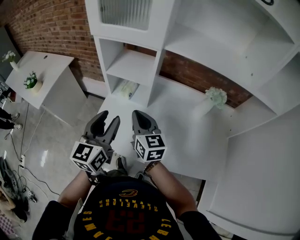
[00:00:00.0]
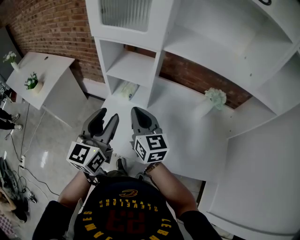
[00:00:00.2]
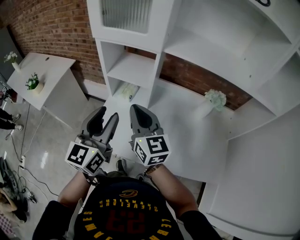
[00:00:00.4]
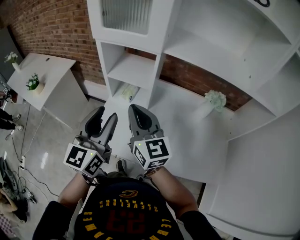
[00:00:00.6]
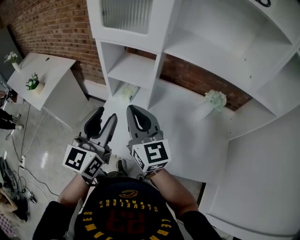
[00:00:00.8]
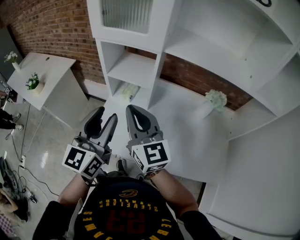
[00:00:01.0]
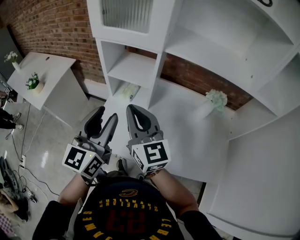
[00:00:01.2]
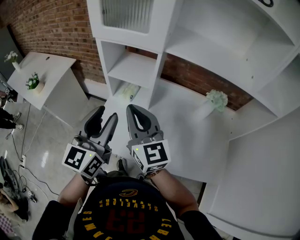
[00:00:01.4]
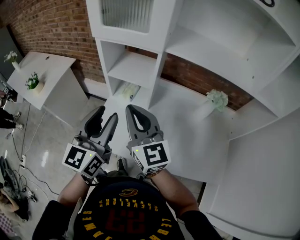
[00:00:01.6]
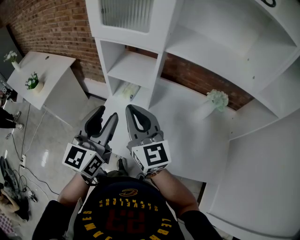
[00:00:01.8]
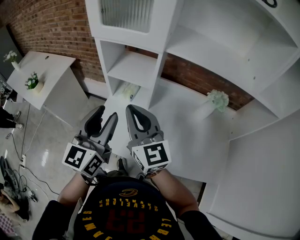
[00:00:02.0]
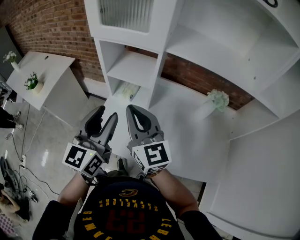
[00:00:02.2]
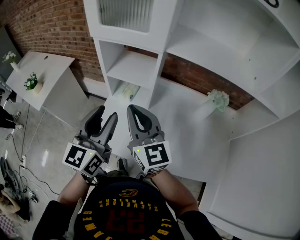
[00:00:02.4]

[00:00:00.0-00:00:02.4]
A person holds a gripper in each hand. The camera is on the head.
00:00:00.0 to 00:00:01.2: The right gripper is displaced upward by roughly 10 cm. The left gripper heads upward, covering approximately 5 cm.
00:00:01.2 to 00:00:02.4: The grippers move only a little.

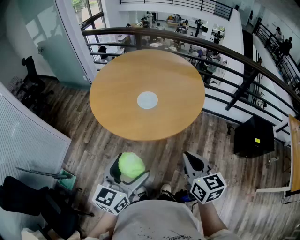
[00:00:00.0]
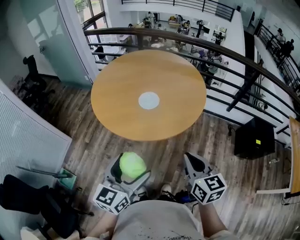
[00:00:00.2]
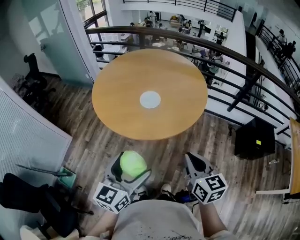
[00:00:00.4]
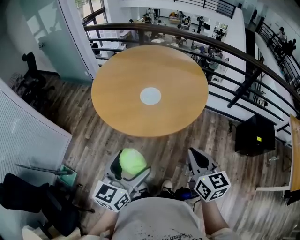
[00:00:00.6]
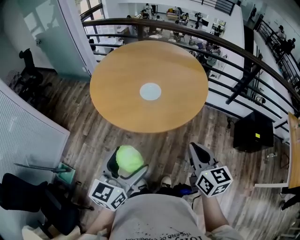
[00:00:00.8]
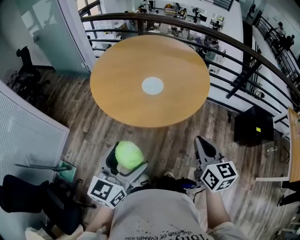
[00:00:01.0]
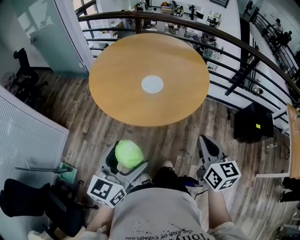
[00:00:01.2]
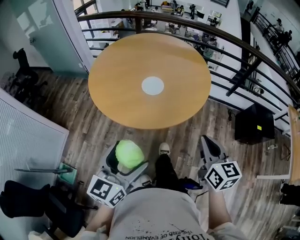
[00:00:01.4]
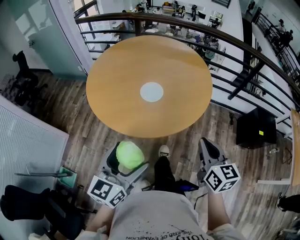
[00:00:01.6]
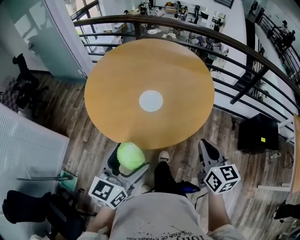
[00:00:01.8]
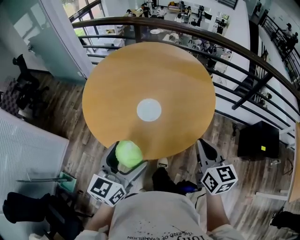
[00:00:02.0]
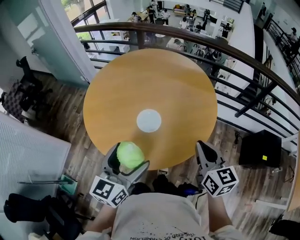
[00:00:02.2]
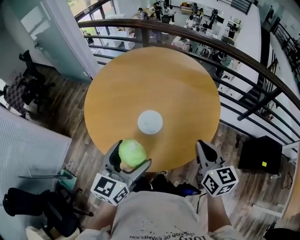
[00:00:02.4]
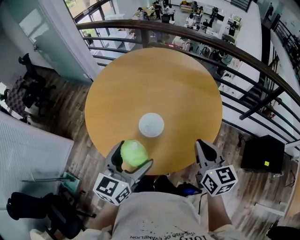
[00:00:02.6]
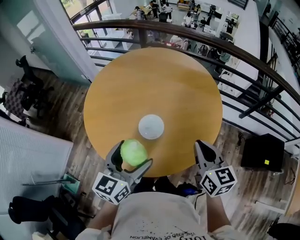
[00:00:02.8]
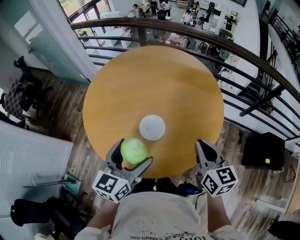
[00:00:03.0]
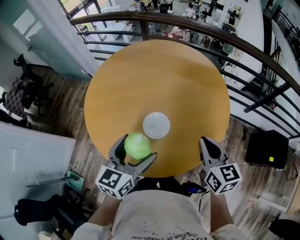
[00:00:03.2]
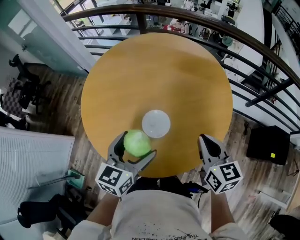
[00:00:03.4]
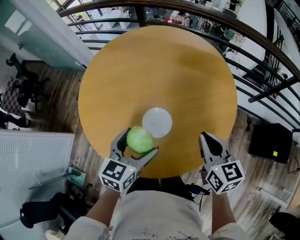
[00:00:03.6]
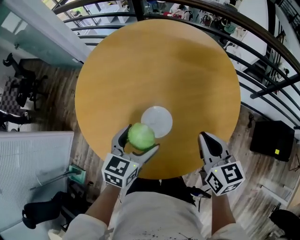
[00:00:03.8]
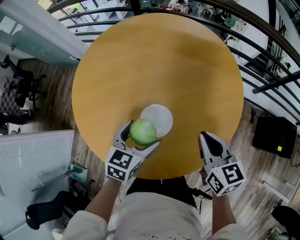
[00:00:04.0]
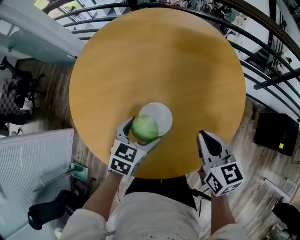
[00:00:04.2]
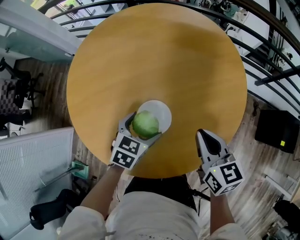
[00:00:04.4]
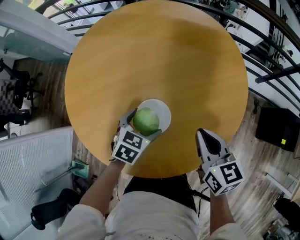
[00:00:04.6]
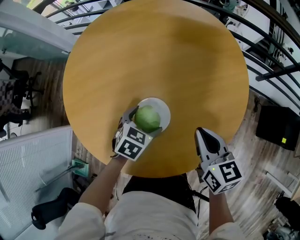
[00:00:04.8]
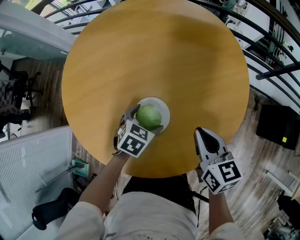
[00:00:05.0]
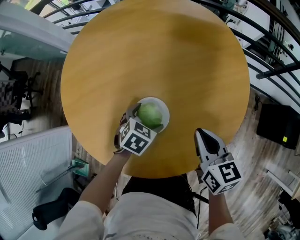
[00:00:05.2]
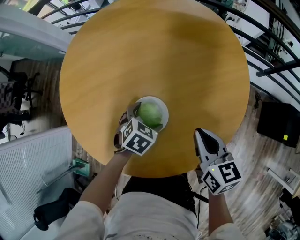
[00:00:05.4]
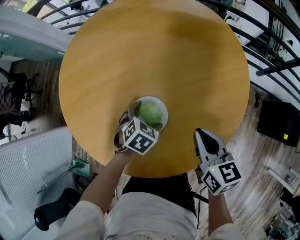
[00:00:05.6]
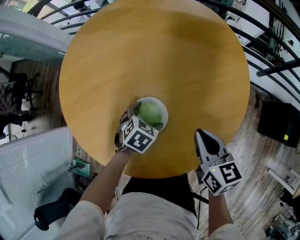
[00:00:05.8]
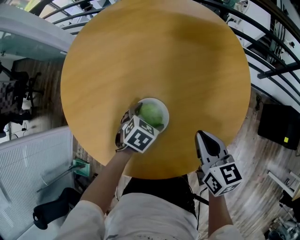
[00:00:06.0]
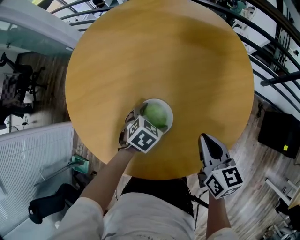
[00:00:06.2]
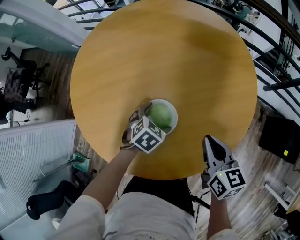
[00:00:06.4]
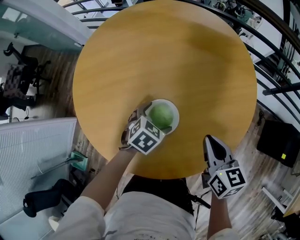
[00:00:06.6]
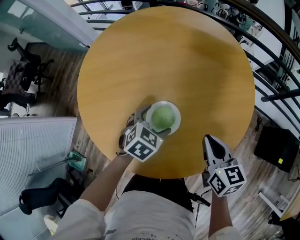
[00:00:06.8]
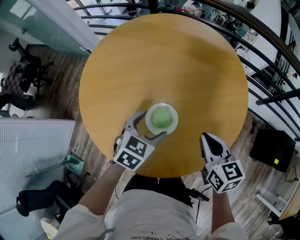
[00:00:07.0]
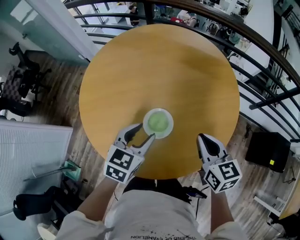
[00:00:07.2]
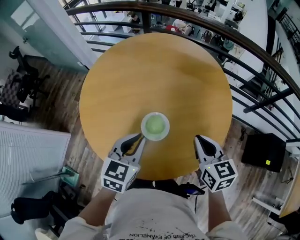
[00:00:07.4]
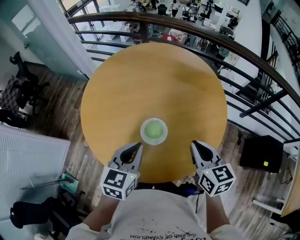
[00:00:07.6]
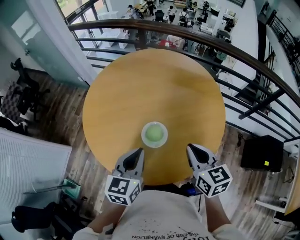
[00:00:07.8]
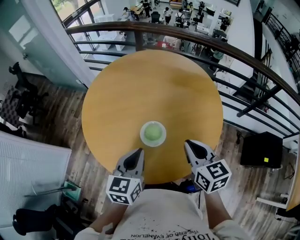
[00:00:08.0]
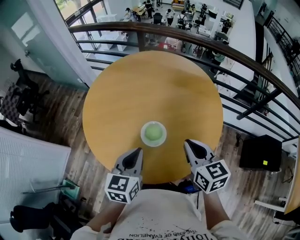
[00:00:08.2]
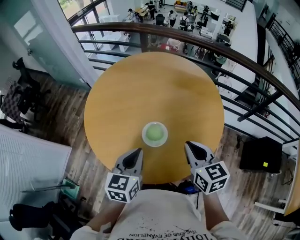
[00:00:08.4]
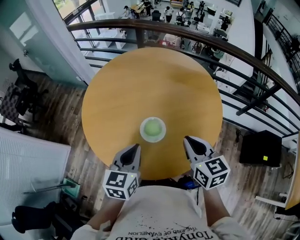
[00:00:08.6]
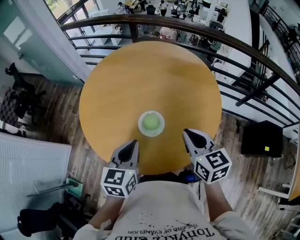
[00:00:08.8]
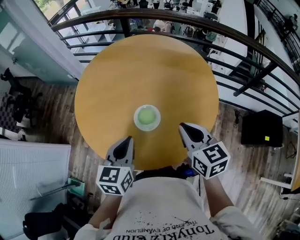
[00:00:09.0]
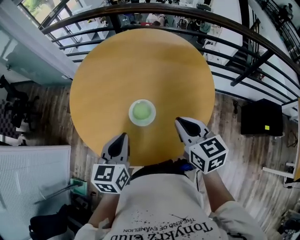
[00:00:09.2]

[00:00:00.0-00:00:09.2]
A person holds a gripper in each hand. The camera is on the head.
00:00:00.0 to 00:00:01.6: Both grippers move forward, approximately 5 cm.
00:00:01.6 to 00:00:03.0: Both grippers move forward, roughly 25 cm.
00:00:03.0 to 00:00:04.6: The right gripper shifts approximately 15 cm downward and forward. The left gripper travels downward and forward by roughly 30 cm, and tilts its fingers roughly 40 degrees downward.
00:00:04.6 to 00:00:06.2: The left gripper travels downward by roughly 5 cm.
00:00:06.2 to 00:00:07.6: The right gripper travels upward by some 15 cm. The left gripper is displaced upward and backward by about 30 cm, tilts its fingers some 40 degrees upward, and closes up.
00:00:07.6 to 00:00:09.2: There are only small adjustments of the grippers.

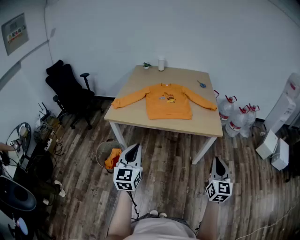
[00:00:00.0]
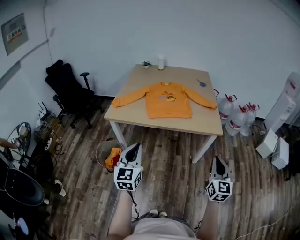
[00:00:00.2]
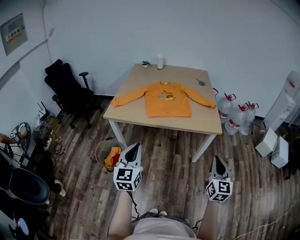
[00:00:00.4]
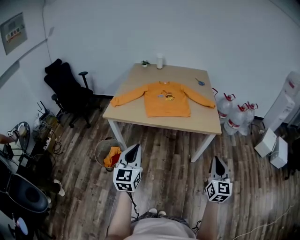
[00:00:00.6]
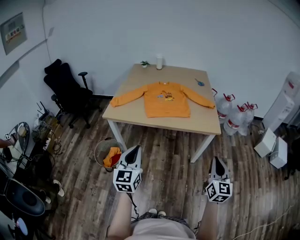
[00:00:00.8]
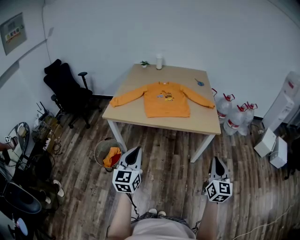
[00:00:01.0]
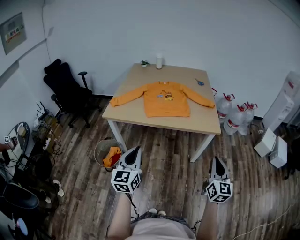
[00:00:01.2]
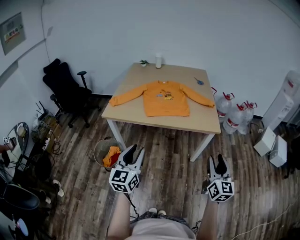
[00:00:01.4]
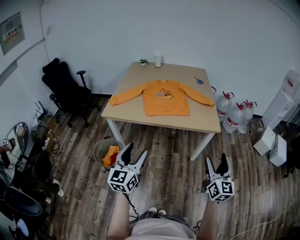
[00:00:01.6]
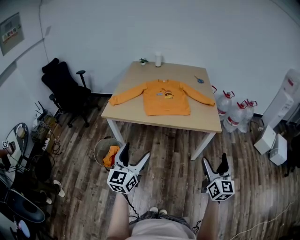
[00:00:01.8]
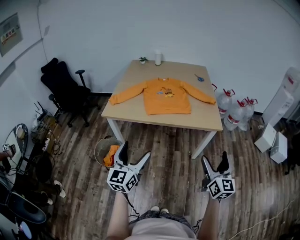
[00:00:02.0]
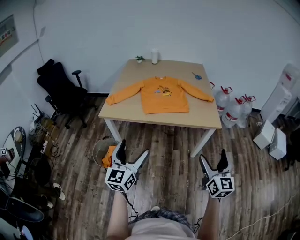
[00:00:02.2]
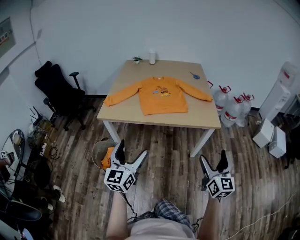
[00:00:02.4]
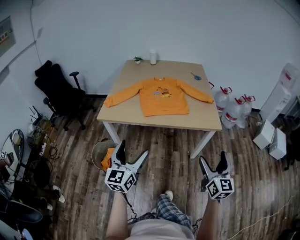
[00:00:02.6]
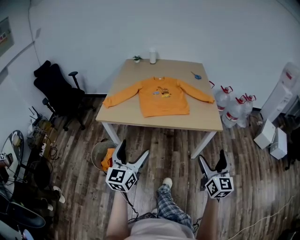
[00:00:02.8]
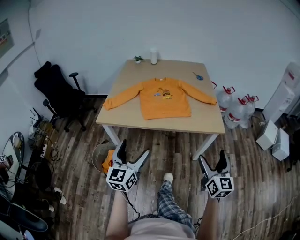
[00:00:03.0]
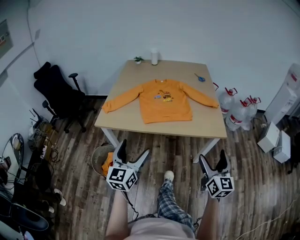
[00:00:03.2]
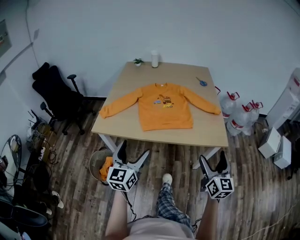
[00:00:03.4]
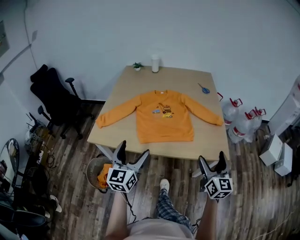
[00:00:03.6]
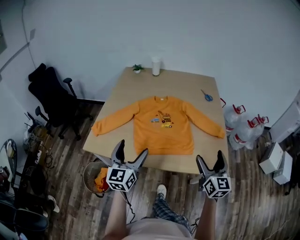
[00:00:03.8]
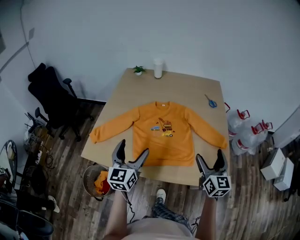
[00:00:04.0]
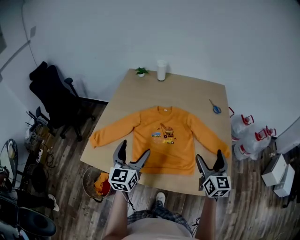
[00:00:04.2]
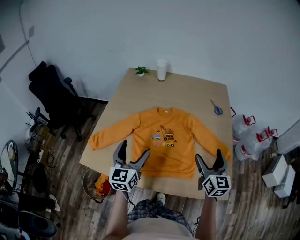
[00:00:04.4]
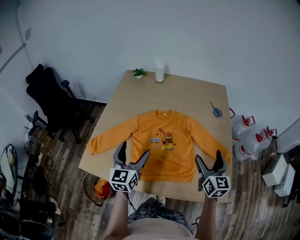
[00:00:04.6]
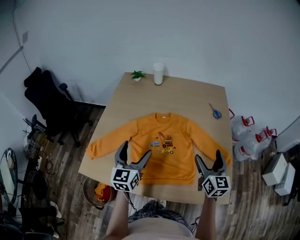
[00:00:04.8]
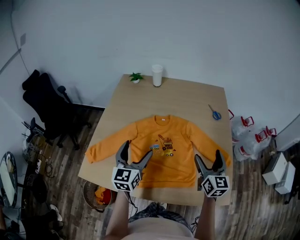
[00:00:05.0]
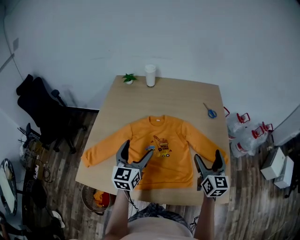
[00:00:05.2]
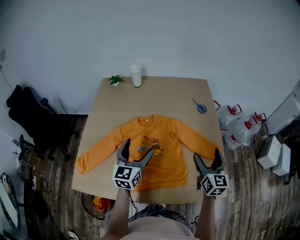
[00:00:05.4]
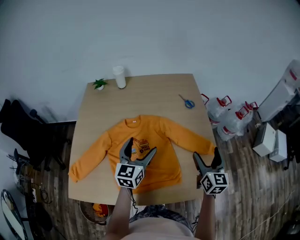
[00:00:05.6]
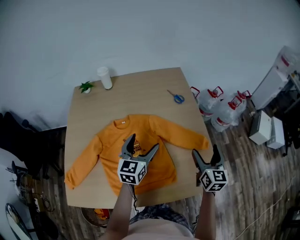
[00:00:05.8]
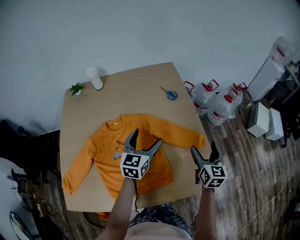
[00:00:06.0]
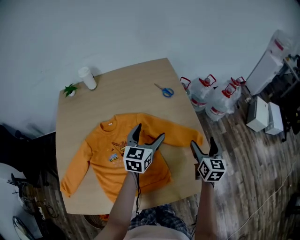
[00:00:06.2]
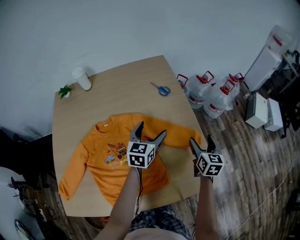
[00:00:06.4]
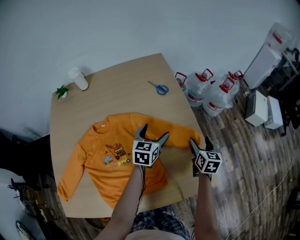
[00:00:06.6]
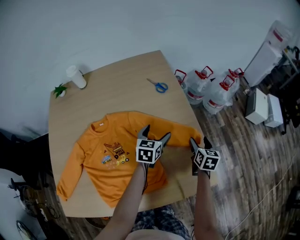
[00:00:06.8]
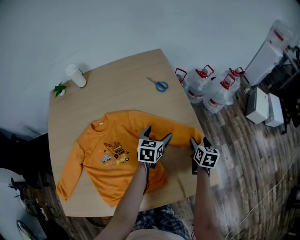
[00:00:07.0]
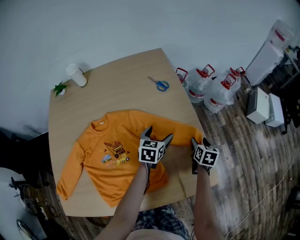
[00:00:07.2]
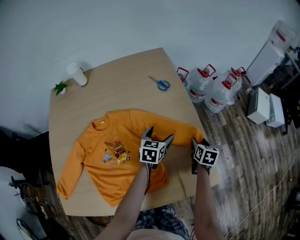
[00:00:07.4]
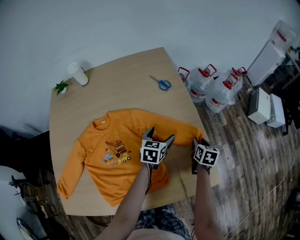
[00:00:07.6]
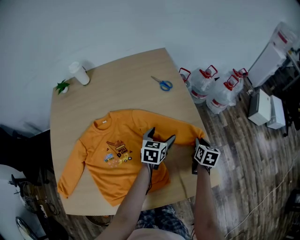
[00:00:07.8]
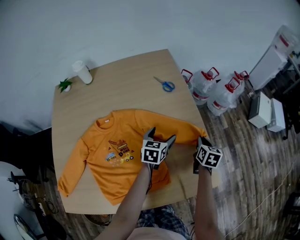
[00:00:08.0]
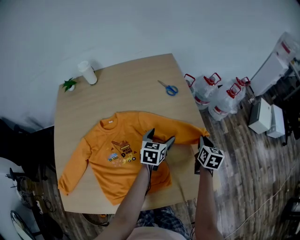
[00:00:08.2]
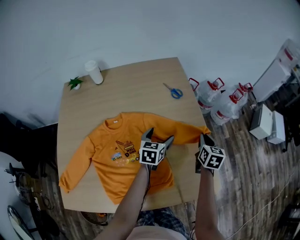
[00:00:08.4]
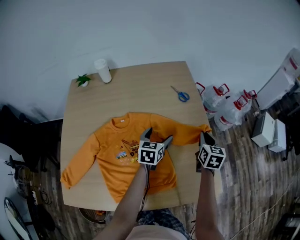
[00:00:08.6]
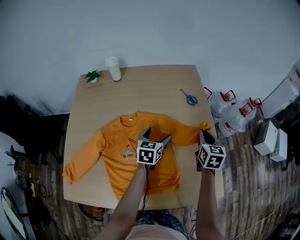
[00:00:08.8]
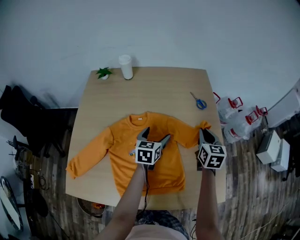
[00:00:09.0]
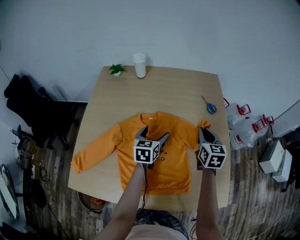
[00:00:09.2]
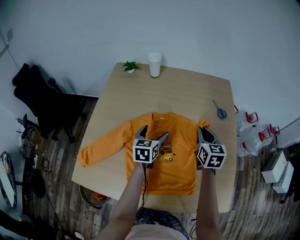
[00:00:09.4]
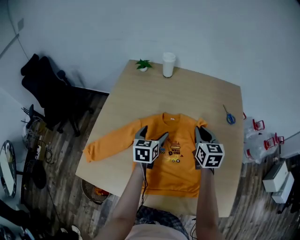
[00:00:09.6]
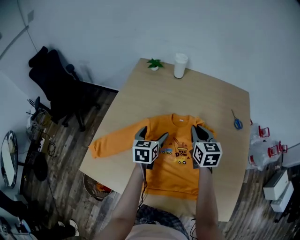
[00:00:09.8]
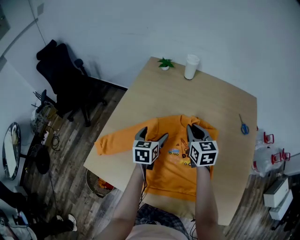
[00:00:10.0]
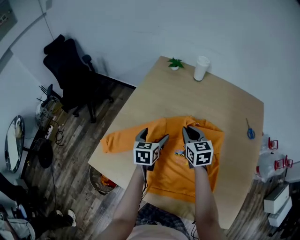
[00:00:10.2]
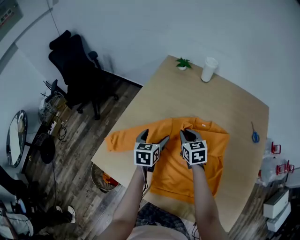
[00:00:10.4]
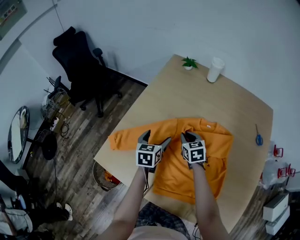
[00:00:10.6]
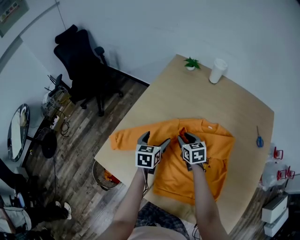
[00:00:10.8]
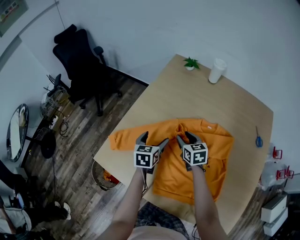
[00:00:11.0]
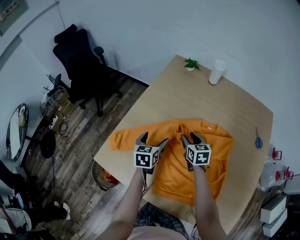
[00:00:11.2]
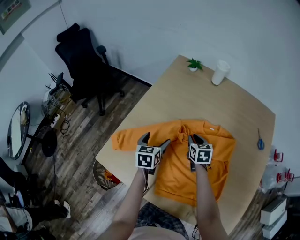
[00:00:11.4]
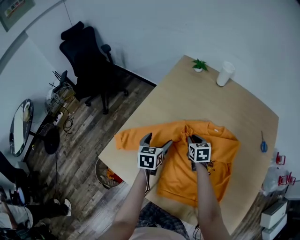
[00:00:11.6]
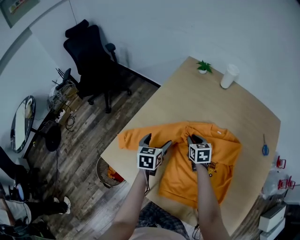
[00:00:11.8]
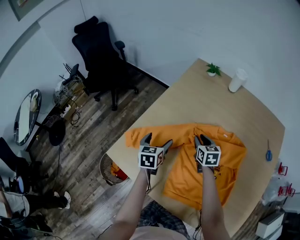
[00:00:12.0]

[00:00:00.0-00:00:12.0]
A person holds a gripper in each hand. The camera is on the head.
00:00:00.0 to 00:00:01.6: The right gripper opens up. The left gripper opens.
00:00:01.6 to 00:00:03.0: The two grippers go approximately 10 cm forward. The left gripper opens.
00:00:03.0 to 00:00:04.4: The pair of grippers is taken forward, approximately 50 cm.
00:00:04.4 to 00:00:06.0: The left gripper shifts by some 30 cm, and swivels some 30 degrees, while the right gripper moves roughly 15 cm, and turns by about 30 degrees.
00:00:06.0 to 00:00:07.6: The left gripper heads downward, to the right and forward, covering some 20 cm, and changes its angle by approximately 20 degrees, while the right gripper goes some 20 cm downward, changes its angle by roughly 30 degrees, and closes up.
00:00:07.6 to 00:00:09.0: The two grippers go roughly 25 cm to the left and upward. The right gripper turns by some 30 degrees. Meanwhile the left gripper changes its angle by some 20 degrees.
00:00:09.0 to 00:00:10.4: The left gripper ends up about 30 cm from where it was, and changes its angle by about 30 degrees. The right gripper changes place by roughly 40 cm, and changes its angle by about 50 degrees.
00:00:10.4 to 00:00:12.0: The left gripper heads to the left, covering approximately 10 cm, while the right gripper shifts by some 5 cm.
